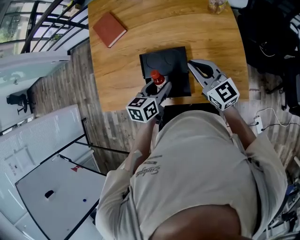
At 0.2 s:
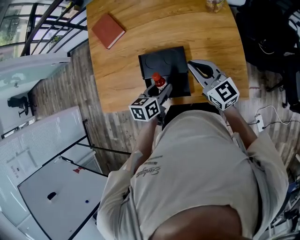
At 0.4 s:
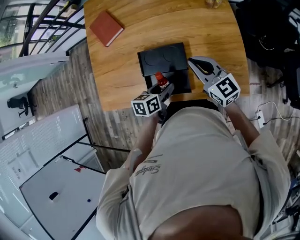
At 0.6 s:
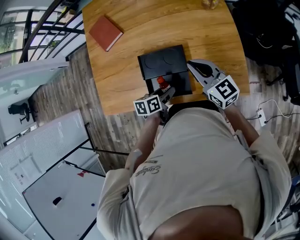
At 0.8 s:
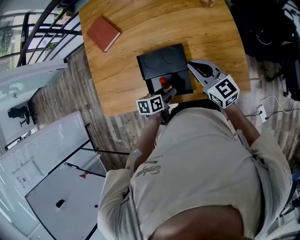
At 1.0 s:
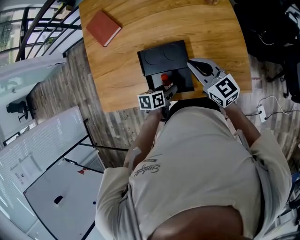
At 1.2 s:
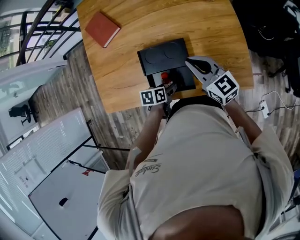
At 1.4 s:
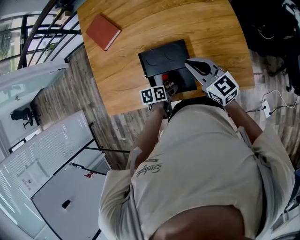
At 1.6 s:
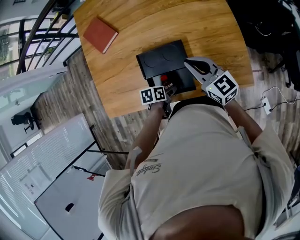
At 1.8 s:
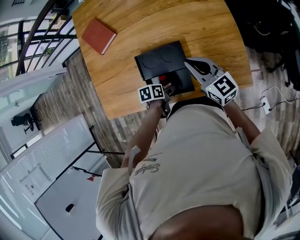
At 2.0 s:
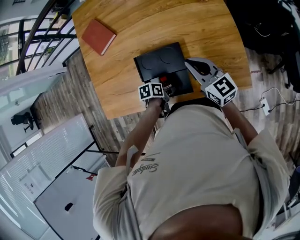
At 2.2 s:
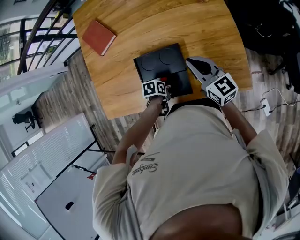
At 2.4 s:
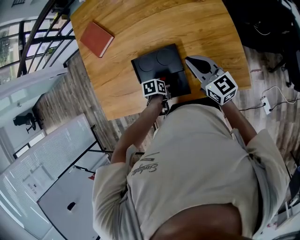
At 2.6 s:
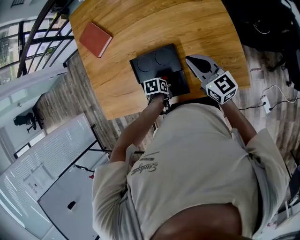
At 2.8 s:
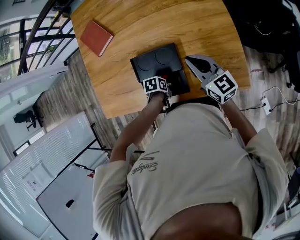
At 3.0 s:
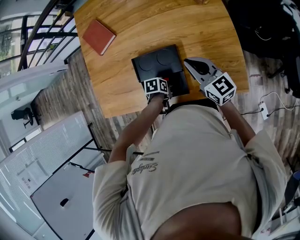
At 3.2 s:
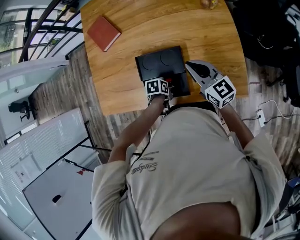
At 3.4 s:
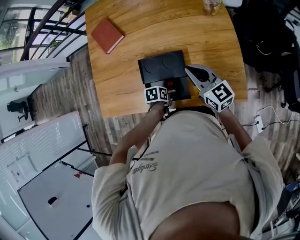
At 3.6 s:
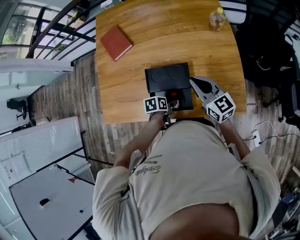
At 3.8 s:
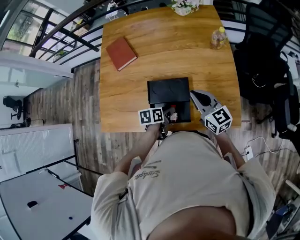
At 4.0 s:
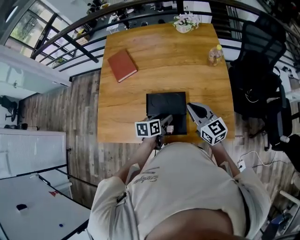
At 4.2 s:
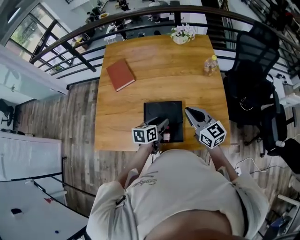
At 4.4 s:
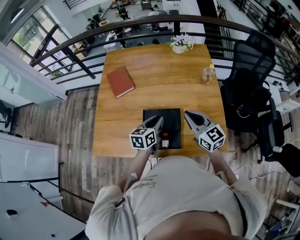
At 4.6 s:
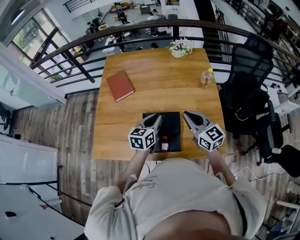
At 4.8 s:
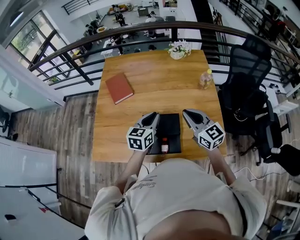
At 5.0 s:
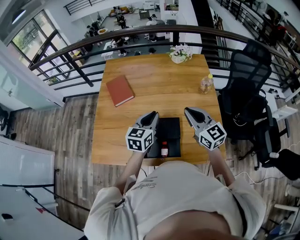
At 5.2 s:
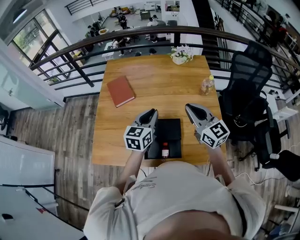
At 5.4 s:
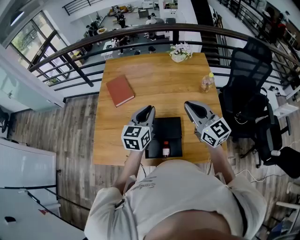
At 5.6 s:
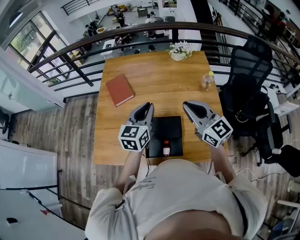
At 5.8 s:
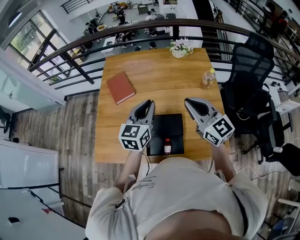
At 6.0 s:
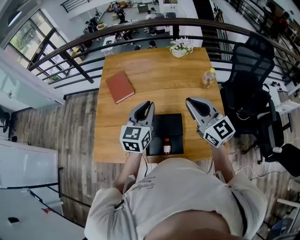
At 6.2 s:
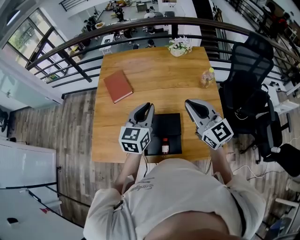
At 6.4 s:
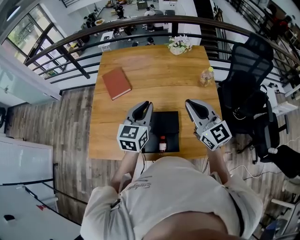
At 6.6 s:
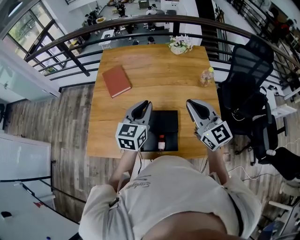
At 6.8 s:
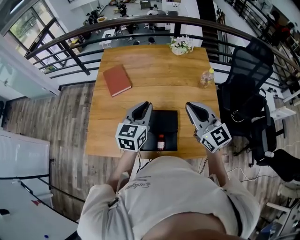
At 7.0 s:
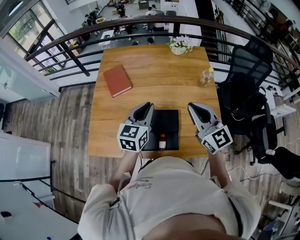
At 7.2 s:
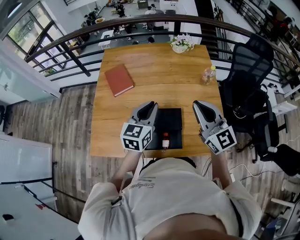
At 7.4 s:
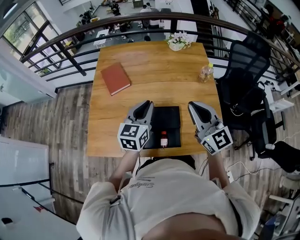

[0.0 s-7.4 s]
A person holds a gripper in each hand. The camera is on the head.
0.0 to 1.4 s: The left gripper shifts roughly 15 cm downward, and changes its angle by approximately 40 degrees.
1.4 to 3.0 s: The left gripper swivels roughly 20 degrees. Meanwhile the right gripper shifts by approximately 5 cm.
3.0 to 4.4 s: The right gripper is displaced upward by about 10 cm; the left gripper is displaced upward by roughly 25 cm, tilts its fingers about 40 degrees upward, and closes.
4.4 to 6.0 s: The two grippers go roughly 15 cm upward. The left gripper rotates about 30 degrees.
6.0 to 7.4 s: There are only small adjustments of the grippers.

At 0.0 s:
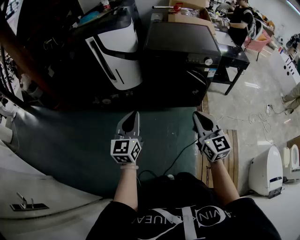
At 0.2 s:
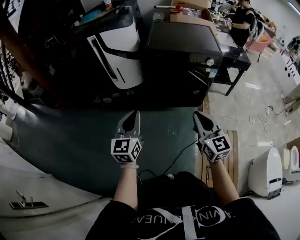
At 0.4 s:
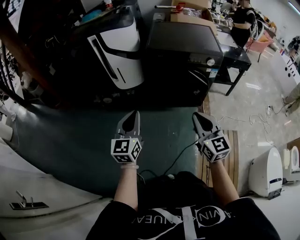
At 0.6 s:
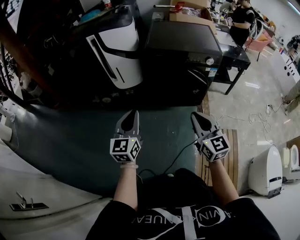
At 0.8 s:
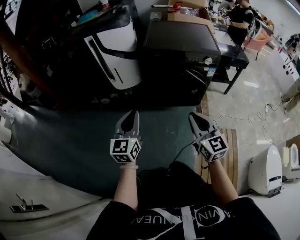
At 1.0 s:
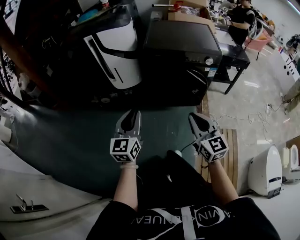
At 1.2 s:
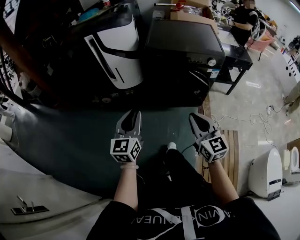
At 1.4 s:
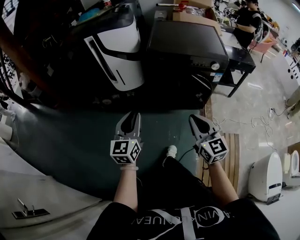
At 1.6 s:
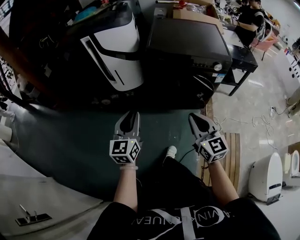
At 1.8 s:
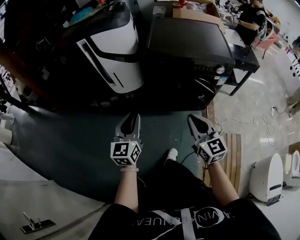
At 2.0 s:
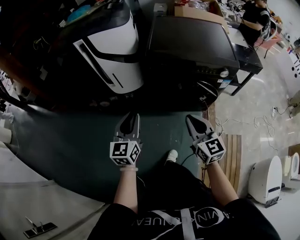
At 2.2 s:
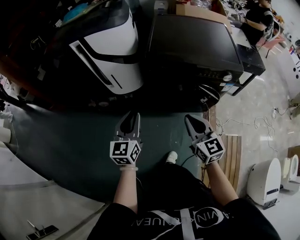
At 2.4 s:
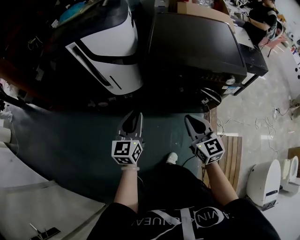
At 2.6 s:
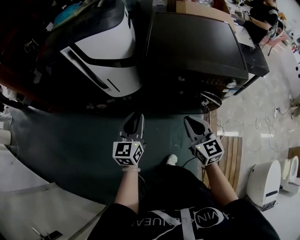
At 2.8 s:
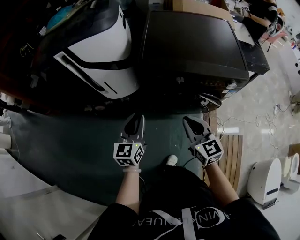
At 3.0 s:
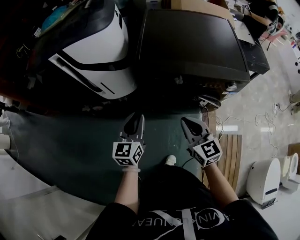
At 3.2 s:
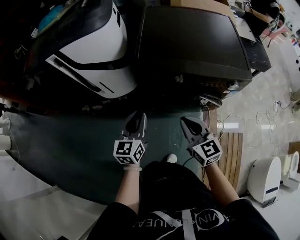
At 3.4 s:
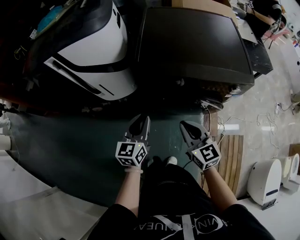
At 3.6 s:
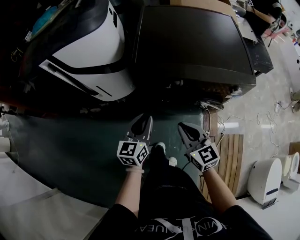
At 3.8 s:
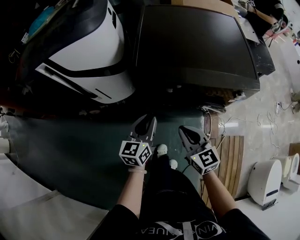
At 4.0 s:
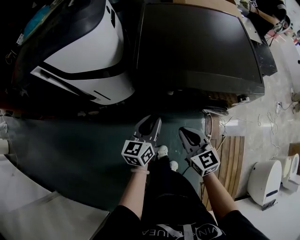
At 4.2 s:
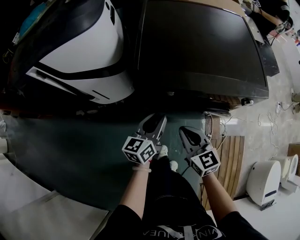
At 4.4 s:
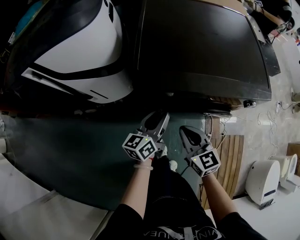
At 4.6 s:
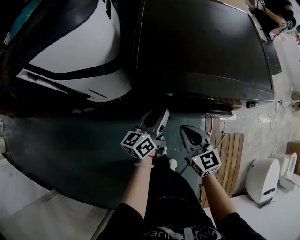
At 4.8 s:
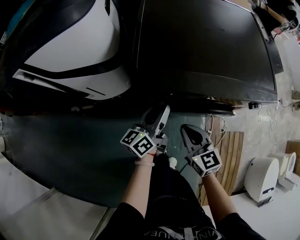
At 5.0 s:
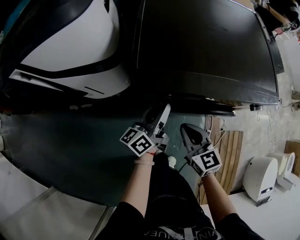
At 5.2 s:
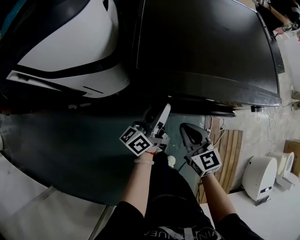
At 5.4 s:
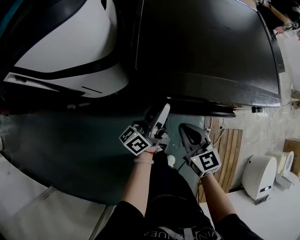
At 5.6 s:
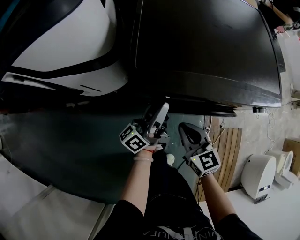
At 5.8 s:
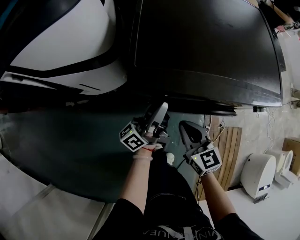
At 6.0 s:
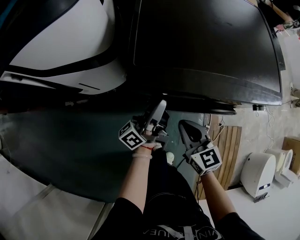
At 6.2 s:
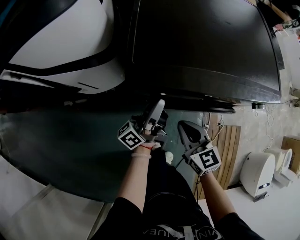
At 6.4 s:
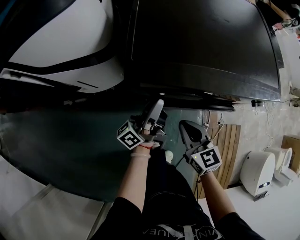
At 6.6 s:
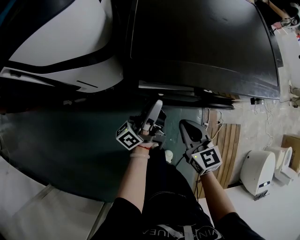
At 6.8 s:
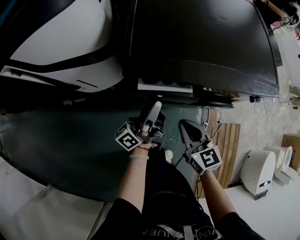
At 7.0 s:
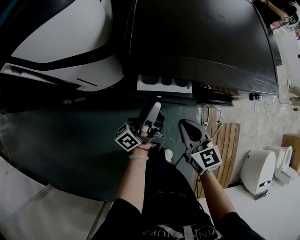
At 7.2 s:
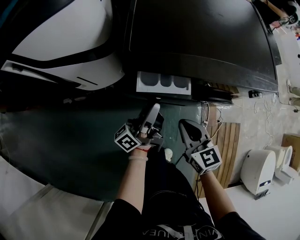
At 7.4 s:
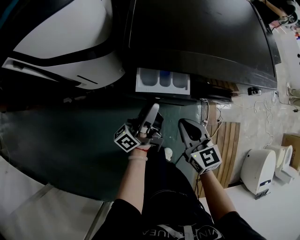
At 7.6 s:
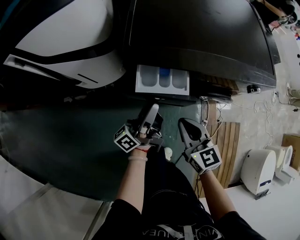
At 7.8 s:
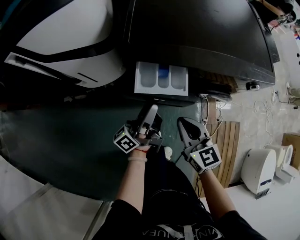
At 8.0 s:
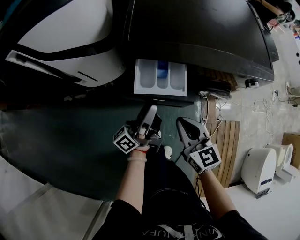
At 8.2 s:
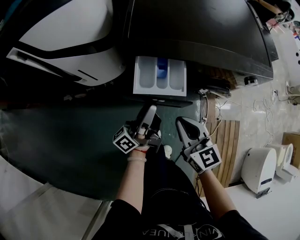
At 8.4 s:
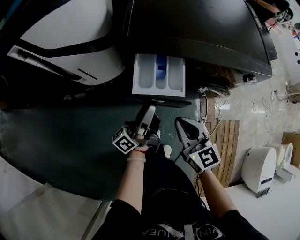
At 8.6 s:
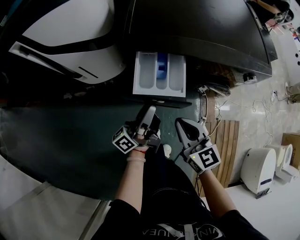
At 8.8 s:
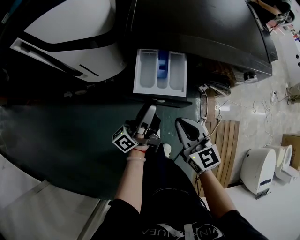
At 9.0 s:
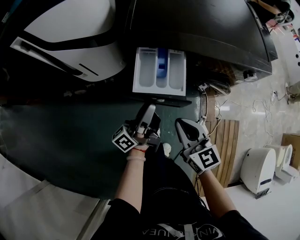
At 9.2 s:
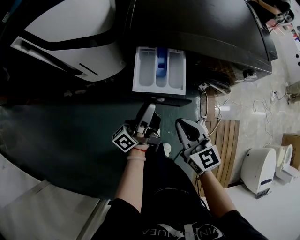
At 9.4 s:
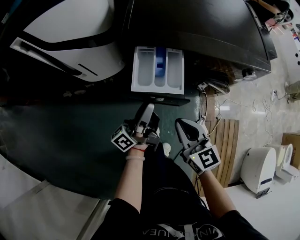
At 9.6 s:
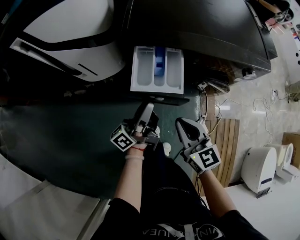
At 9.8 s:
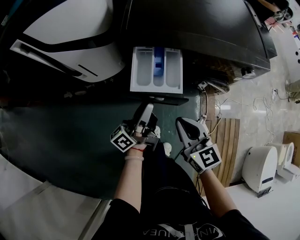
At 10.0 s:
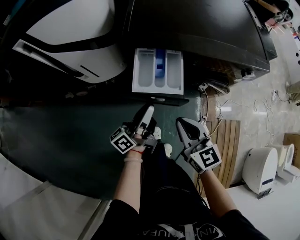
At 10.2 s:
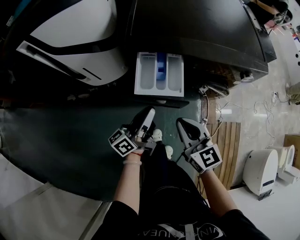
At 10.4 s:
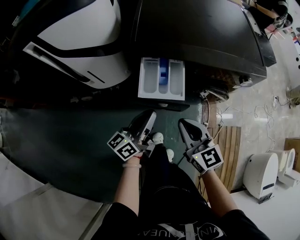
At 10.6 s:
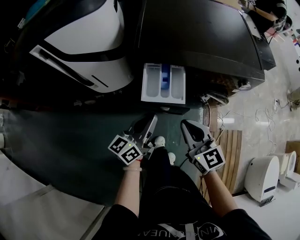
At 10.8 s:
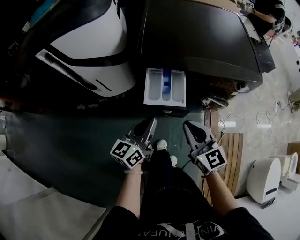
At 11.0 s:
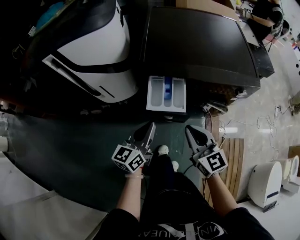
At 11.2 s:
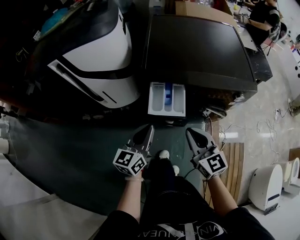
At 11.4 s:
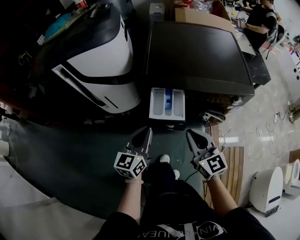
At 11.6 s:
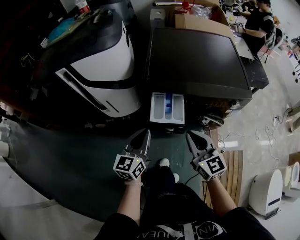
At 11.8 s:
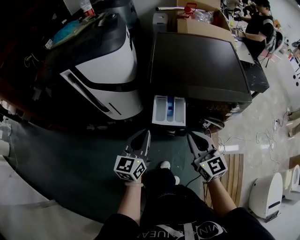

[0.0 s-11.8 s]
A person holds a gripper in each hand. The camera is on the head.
0.0 to 1.4 s: Both grippers travel together forward, about 5 cm.
1.4 to 3.0 s: The grippers both shift forward by some 30 cm.
3.0 to 4.4 s: The right gripper heads downward and forward, covering approximately 15 cm. The left gripper heads forward, downward and to the right, covering approximately 20 cm, and rotates about 30 degrees.
4.4 to 6.0 s: The left gripper shifts about 5 cm forward, and tips its fingers upward by roughly 30 degrees, while the right gripper shifts by roughly 5 cm.
6.0 to 7.4 s: Both grippers travel together backward, about 5 cm.
7.4 to 8.8 s: Both grippers travel together backward, about 5 cm.
8.8 to 10.4 s: The left gripper rotates some 30 degrees.
10.4 to 11.8 s: The left gripper shifts roughly 15 cm upward and to the left, and rotates roughly 40 degrees. The right gripper shifts approximately 10 cm upward.

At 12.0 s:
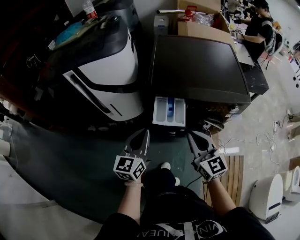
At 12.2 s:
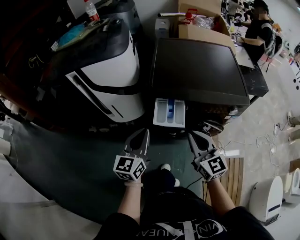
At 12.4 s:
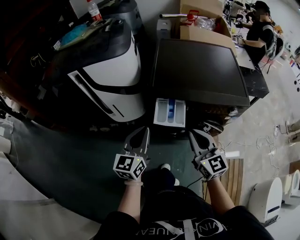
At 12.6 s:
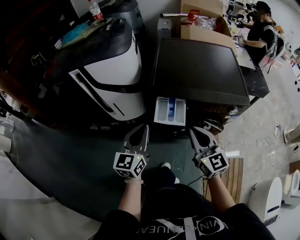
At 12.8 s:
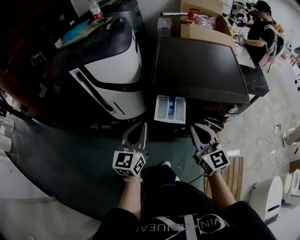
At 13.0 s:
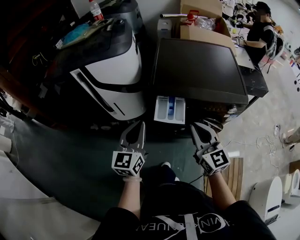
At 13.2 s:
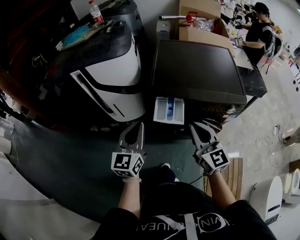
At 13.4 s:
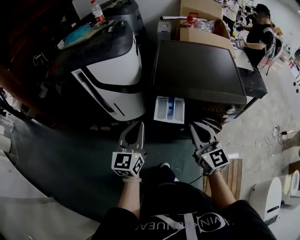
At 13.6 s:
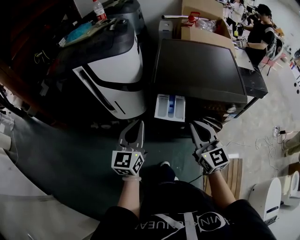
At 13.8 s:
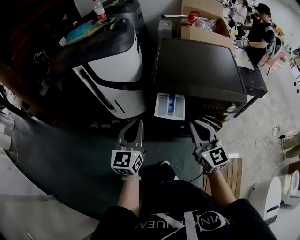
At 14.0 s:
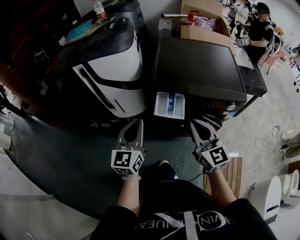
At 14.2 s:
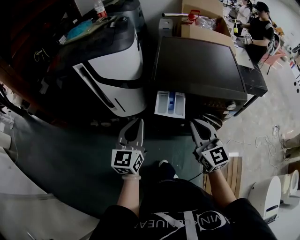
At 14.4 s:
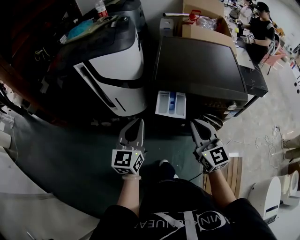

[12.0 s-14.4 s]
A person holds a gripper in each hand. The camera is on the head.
12.0 to 13.2 s: Both grippers move upward, approximately 5 cm.
13.2 to 14.4 s: The grippers stay close to where they were, moving slightly.

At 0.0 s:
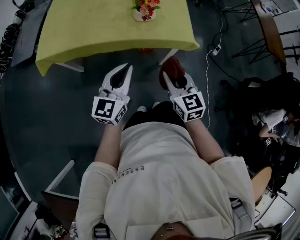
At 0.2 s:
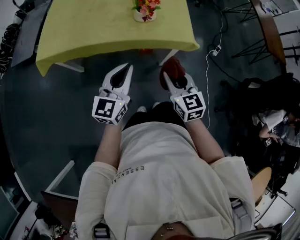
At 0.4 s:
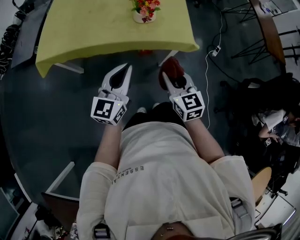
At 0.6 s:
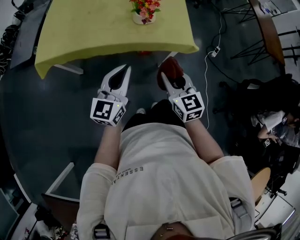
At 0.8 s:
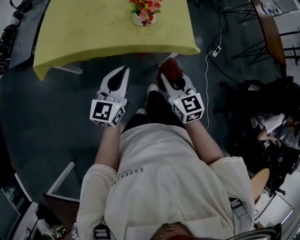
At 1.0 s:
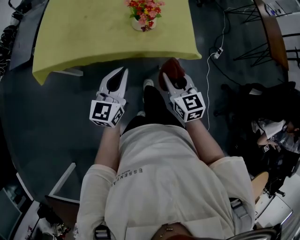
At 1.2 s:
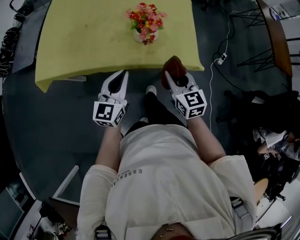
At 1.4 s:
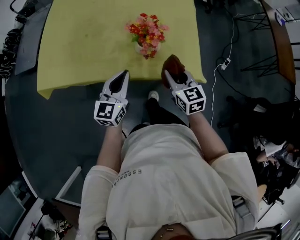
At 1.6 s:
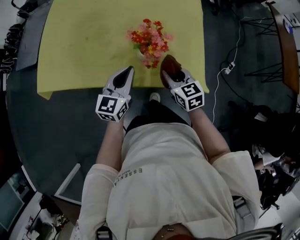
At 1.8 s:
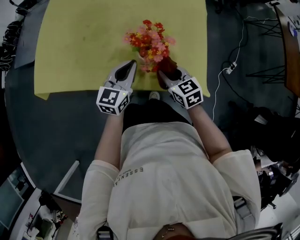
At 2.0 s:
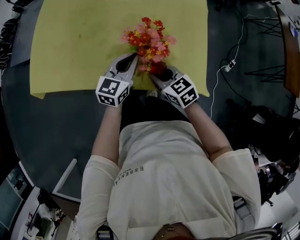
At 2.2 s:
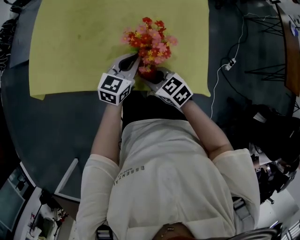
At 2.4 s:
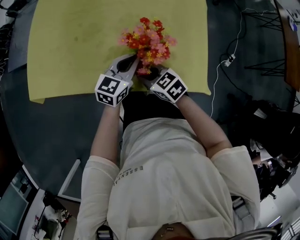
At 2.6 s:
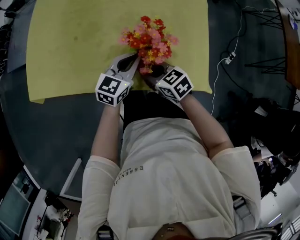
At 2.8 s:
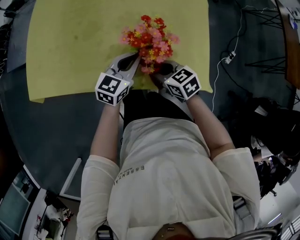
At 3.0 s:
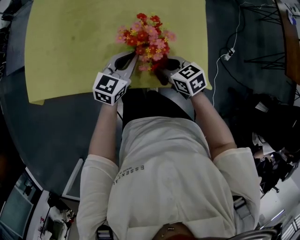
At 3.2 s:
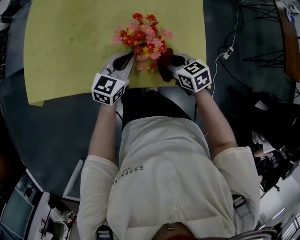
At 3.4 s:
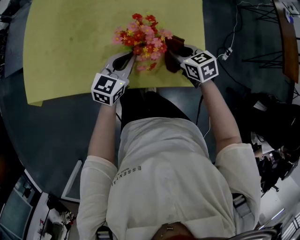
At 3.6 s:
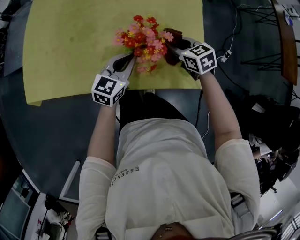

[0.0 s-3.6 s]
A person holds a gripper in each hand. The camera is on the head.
0.0 to 1.8 s: The right gripper moves forward and downward, about 30 cm, and changes its angle by some 20 degrees, while the left gripper heads forward, covering approximately 30 cm.
1.8 to 3.6 s: The right gripper moves forward and to the right, some 10 cm.
